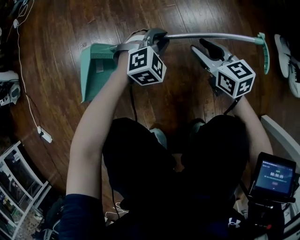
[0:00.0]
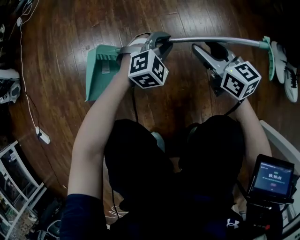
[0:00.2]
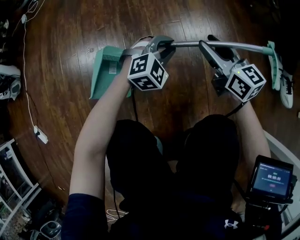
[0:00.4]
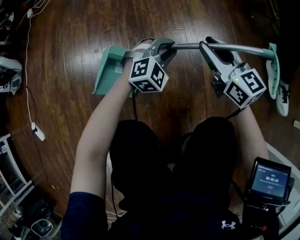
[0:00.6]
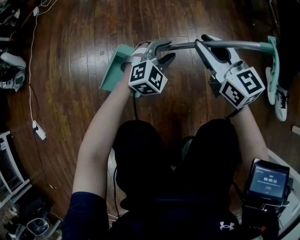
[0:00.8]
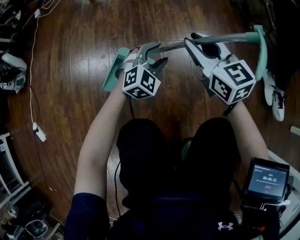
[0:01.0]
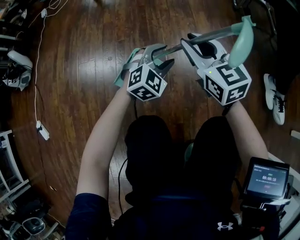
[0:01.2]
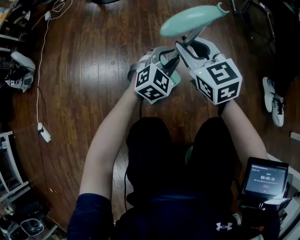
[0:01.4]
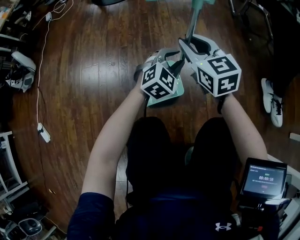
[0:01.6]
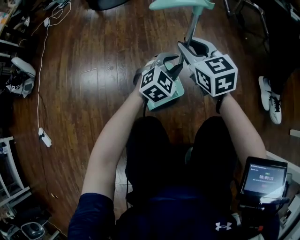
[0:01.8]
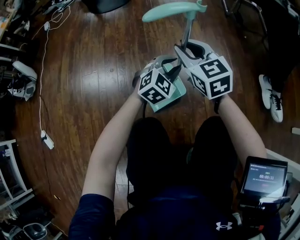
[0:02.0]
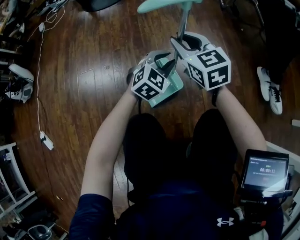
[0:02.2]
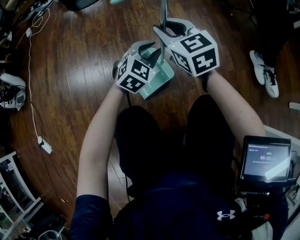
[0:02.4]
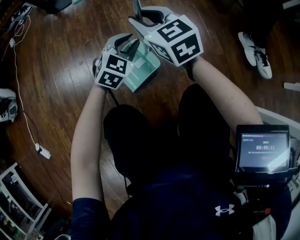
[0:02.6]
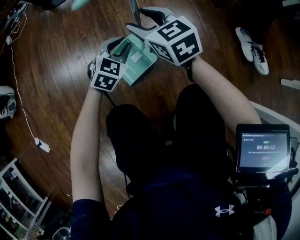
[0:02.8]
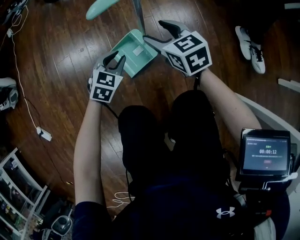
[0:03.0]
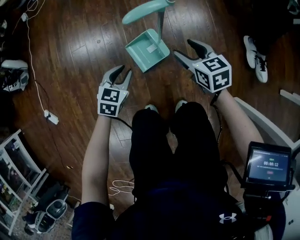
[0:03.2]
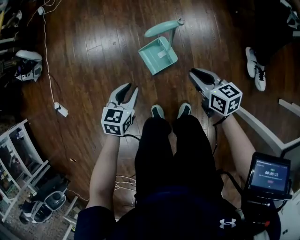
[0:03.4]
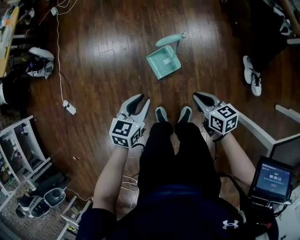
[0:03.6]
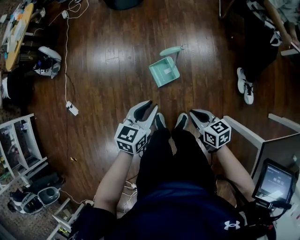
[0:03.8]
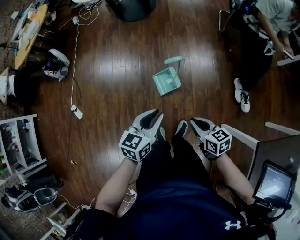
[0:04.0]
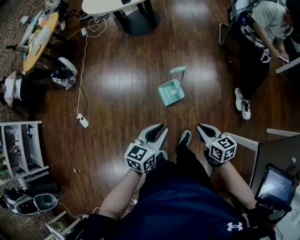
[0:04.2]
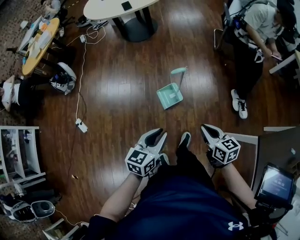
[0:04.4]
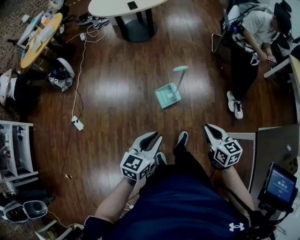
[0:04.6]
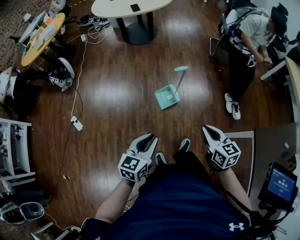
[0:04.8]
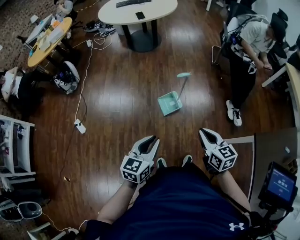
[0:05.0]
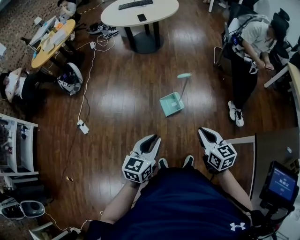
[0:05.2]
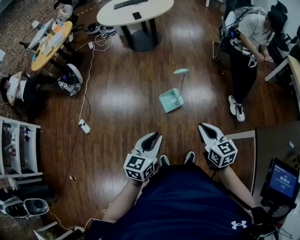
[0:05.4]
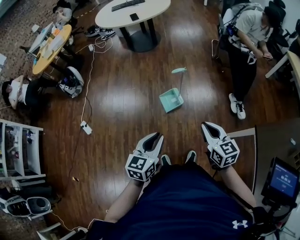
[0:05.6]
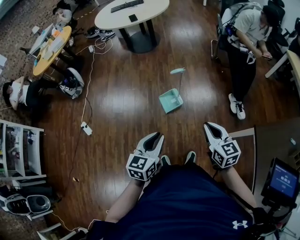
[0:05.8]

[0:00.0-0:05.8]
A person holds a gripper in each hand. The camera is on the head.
0.0 to 1.4 s: The right gripper travels upward, to the left and forward by some 20 cm, and rotates some 30 degrees. The left gripper heads upward, covering roughly 10 cm, rotates roughly 20 degrees, and opens, then closes again.
1.4 to 2.8 s: The right gripper opens up.
2.8 to 4.4 s: Both grippers move upward and backward, approximately 60 cm. The left gripper rotates around the line of its fingers by approximately 50 degrees, counterclockwise from behind; the right gripper rotates some 20 degrees, and closes up.
4.4 to 5.8 s: The right gripper goes about 10 cm upward and backward. Meanwhile the left gripper travels backward by roughly 10 cm.

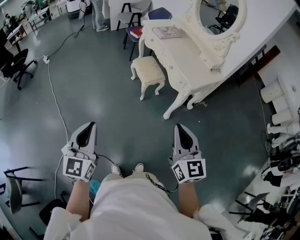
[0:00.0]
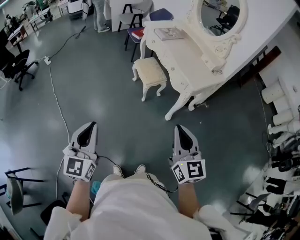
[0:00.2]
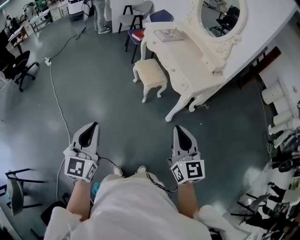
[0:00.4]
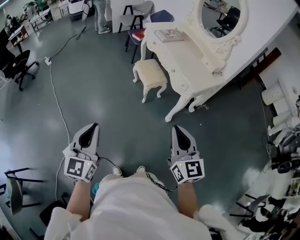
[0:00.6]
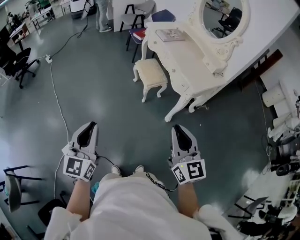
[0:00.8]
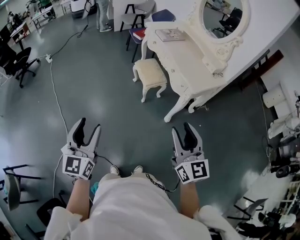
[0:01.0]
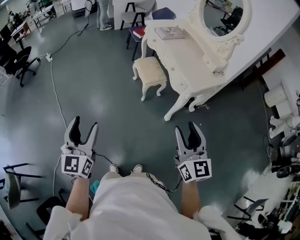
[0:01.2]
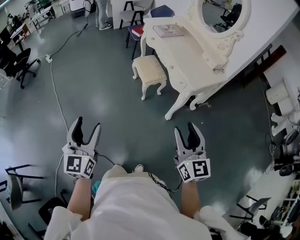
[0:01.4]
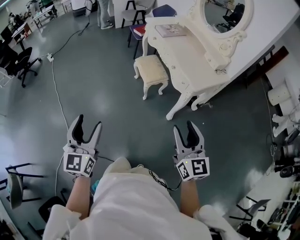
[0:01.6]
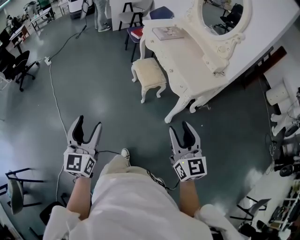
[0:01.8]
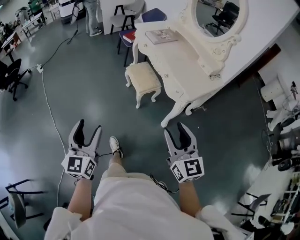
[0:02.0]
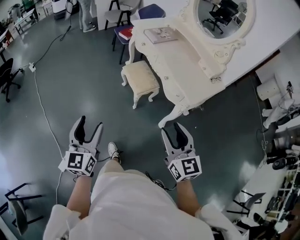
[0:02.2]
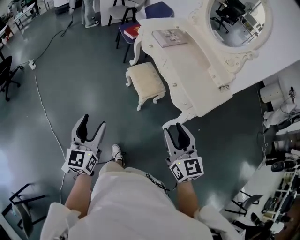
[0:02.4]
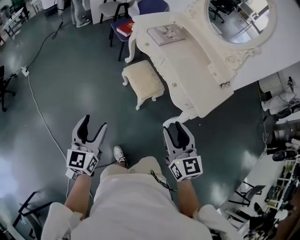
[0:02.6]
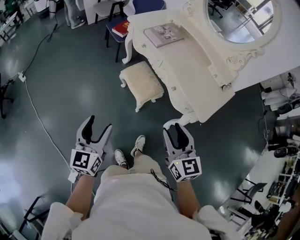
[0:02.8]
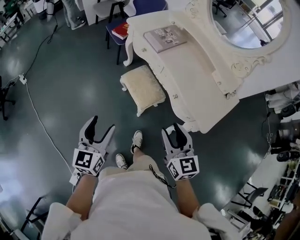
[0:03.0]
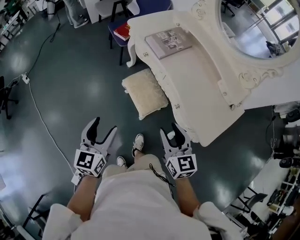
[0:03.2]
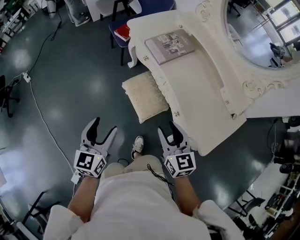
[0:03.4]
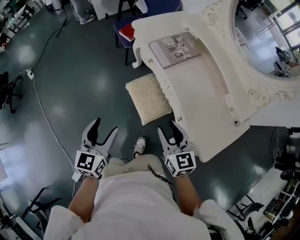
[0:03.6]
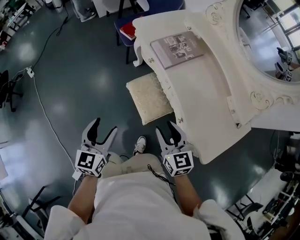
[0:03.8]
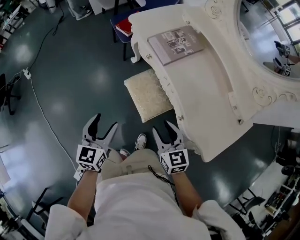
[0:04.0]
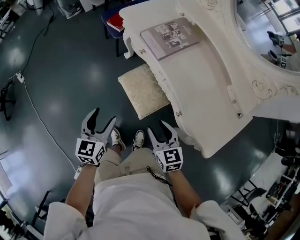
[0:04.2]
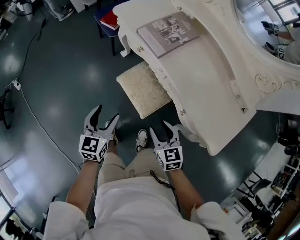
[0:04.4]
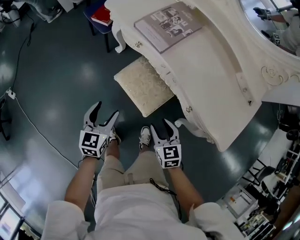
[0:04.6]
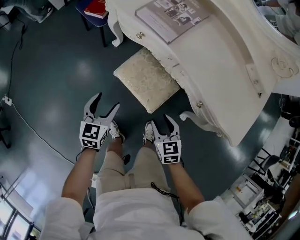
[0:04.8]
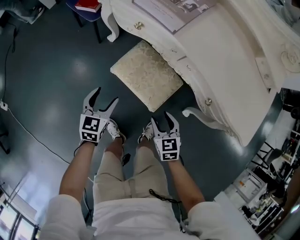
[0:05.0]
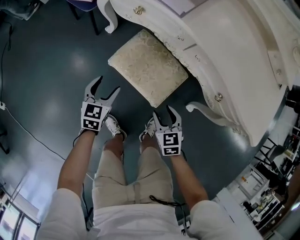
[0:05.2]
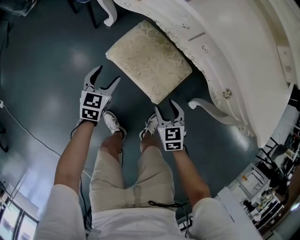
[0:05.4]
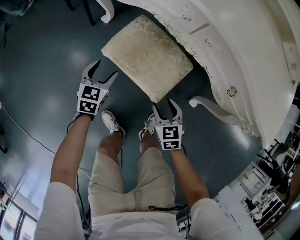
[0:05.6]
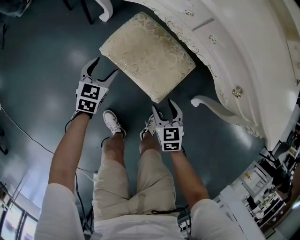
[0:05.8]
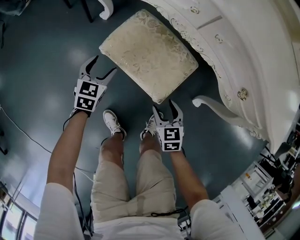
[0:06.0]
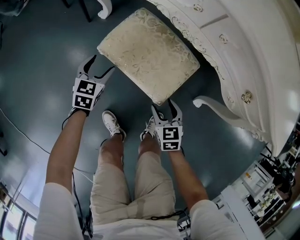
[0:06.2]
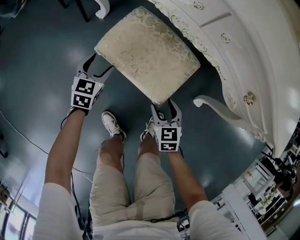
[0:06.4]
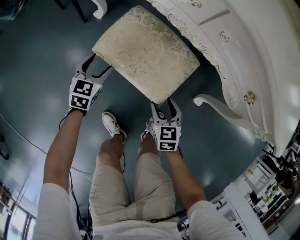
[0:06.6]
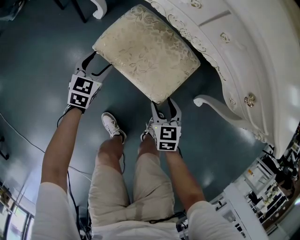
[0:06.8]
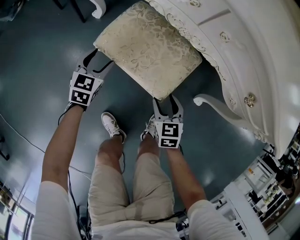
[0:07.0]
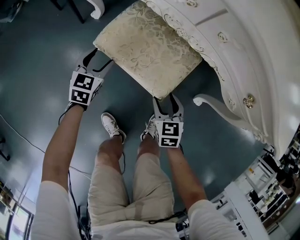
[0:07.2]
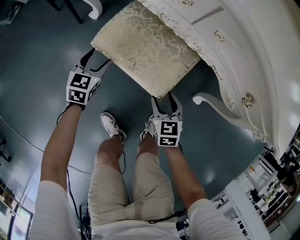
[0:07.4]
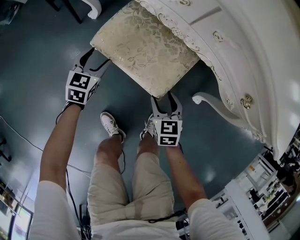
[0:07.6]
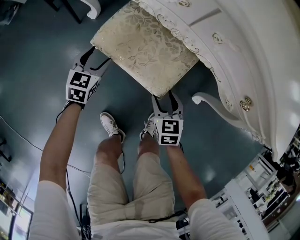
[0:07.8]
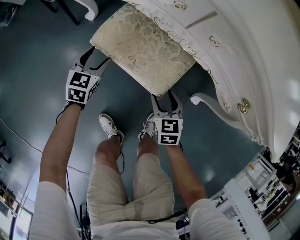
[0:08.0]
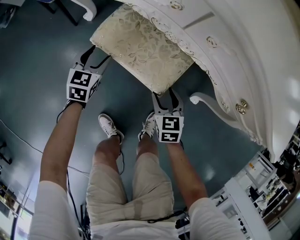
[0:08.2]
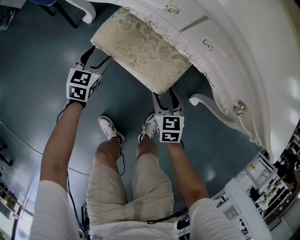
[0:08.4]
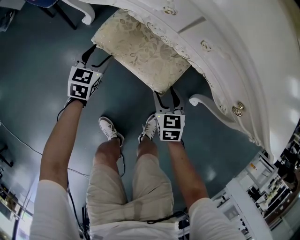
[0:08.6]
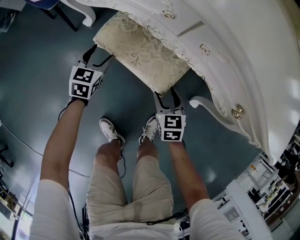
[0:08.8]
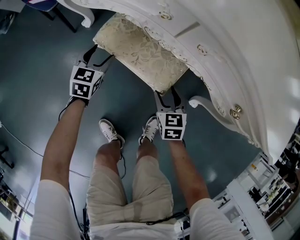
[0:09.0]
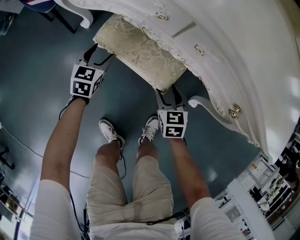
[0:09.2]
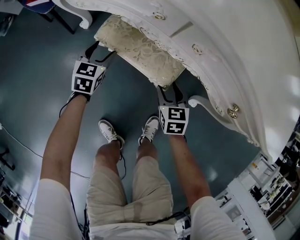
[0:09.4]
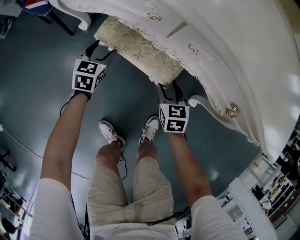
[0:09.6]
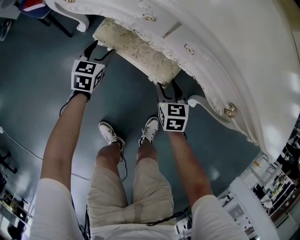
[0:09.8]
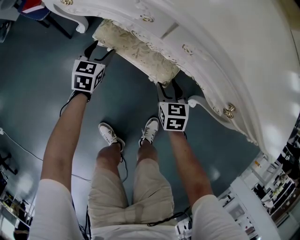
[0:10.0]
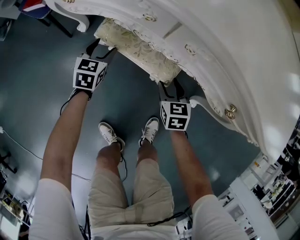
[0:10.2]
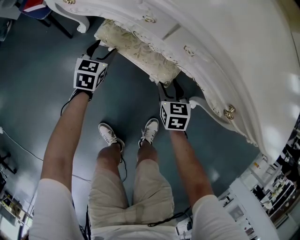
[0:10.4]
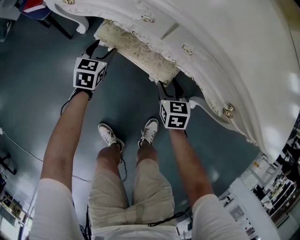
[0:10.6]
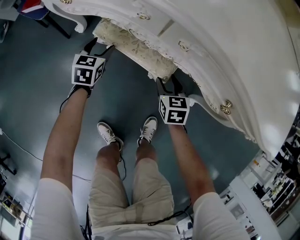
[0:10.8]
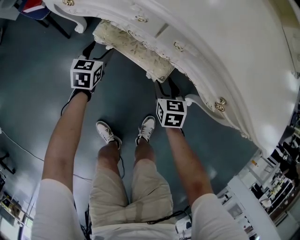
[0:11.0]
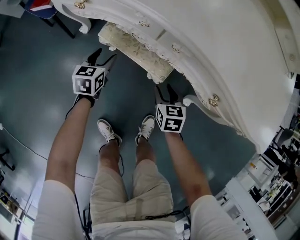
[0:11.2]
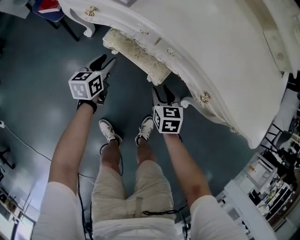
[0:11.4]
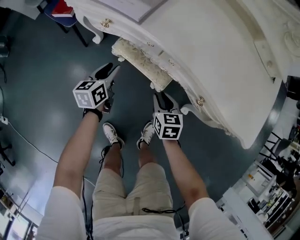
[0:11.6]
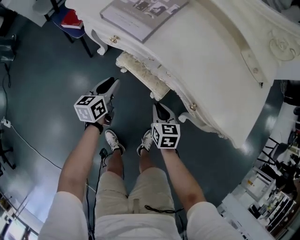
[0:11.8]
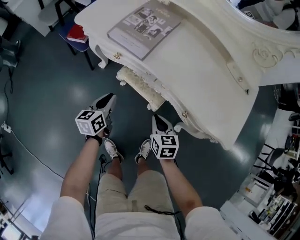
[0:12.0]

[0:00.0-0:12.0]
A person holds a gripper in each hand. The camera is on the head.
0.0 to 1.6 s: The left gripper ends up about 5 cm from where it was, and opens. Meanwhile the right gripper goes about 5 cm to the right, and opens up.
1.6 to 3.0 s: Both grippers are carried forward, approximately 40 cm. The left gripper swivels some 20 degrees.
3.0 to 4.4 s: The left gripper goes approximately 25 cm forward and downward. The right gripper travels downward and forward by some 25 cm.
4.4 to 6.0 s: Both grippers travel together downward, some 40 cm. The left gripper turns by approximately 30 degrees; the right gripper swivels roughly 20 degrees.
6.0 to 7.6 s: Both grippers travel together forward, about 5 cm.
7.6 to 9.0 s: Both grippers travel together forward, about 5 cm.
9.0 to 10.4 s: The right gripper changes place by about 5 cm. Meanwhile the left gripper moves approximately 5 cm.
10.4 to 12.0 s: The right gripper travels upward by about 25 cm, and closes its fingers. Meanwhile the left gripper shifts approximately 30 cm upward and backward, rotates roughly 40 degrees, and closes its fingers.

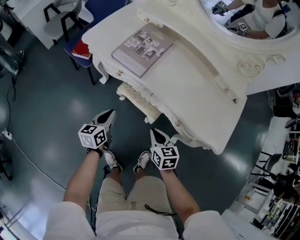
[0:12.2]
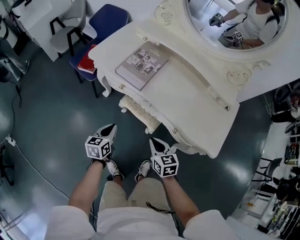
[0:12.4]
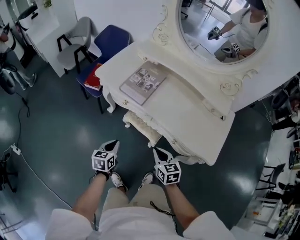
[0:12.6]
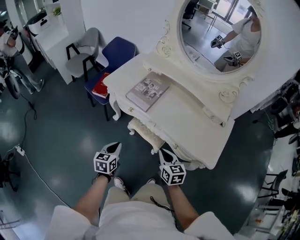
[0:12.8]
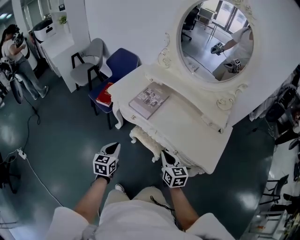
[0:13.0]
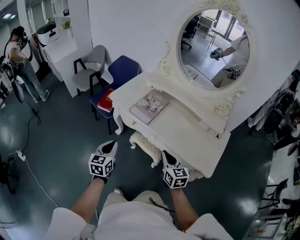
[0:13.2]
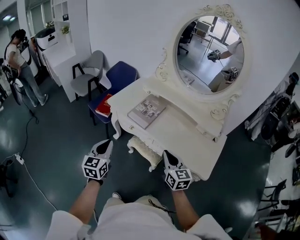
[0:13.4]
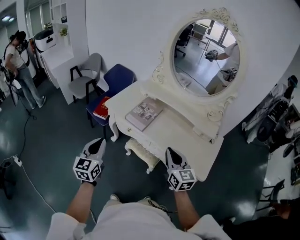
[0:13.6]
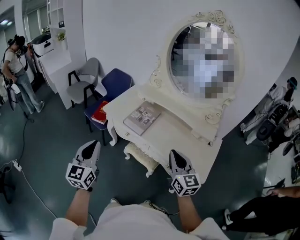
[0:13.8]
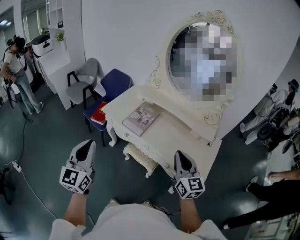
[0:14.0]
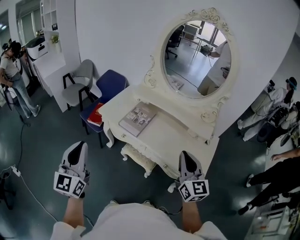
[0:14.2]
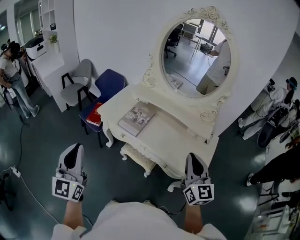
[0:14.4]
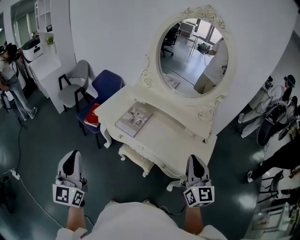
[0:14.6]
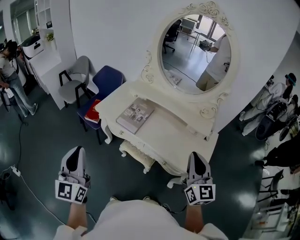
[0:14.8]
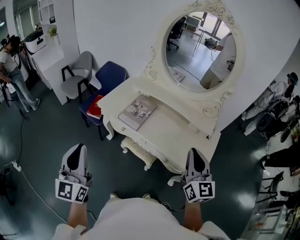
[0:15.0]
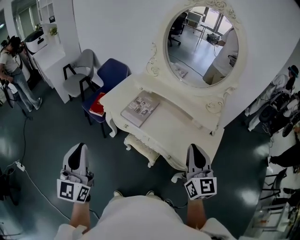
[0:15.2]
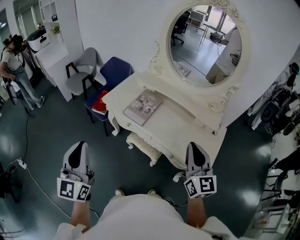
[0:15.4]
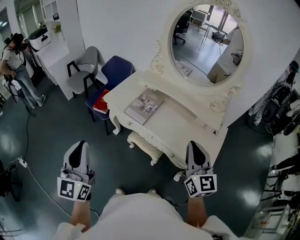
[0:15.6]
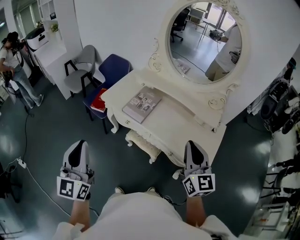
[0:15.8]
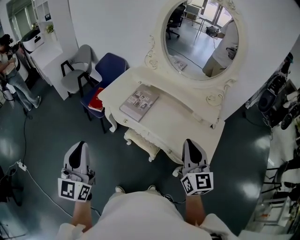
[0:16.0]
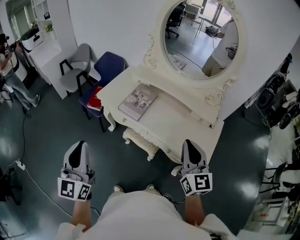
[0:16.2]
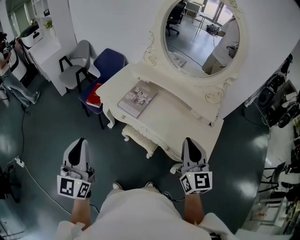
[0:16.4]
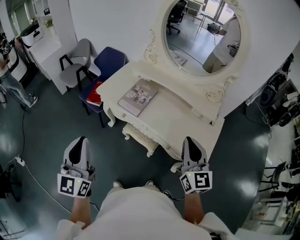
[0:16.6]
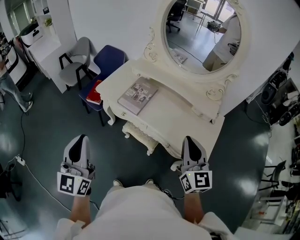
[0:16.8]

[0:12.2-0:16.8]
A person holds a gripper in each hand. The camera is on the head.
12.2 to 13.8 s: The grippers both shift upward by about 40 cm. The left gripper turns by some 40 degrees, while the right gripper angles its fingers upward, by approximately 30 degrees.
13.8 to 15.2 s: The right gripper heads upward and to the right, covering roughly 10 cm. The left gripper travels upward by some 5 cm.
15.2 to 16.8 s: The grippers make only small movements.

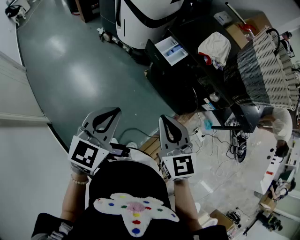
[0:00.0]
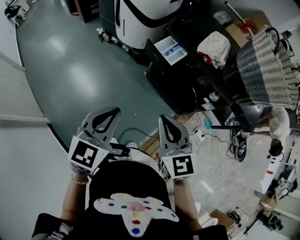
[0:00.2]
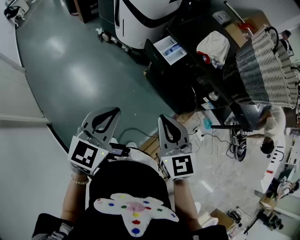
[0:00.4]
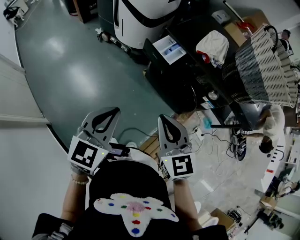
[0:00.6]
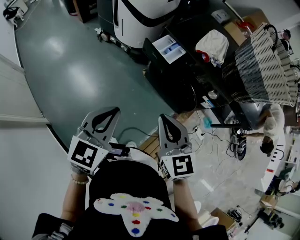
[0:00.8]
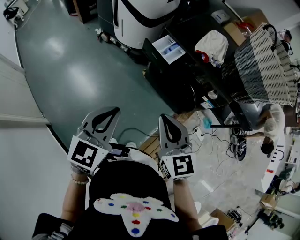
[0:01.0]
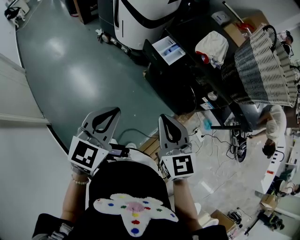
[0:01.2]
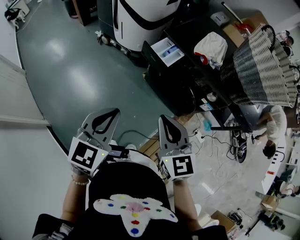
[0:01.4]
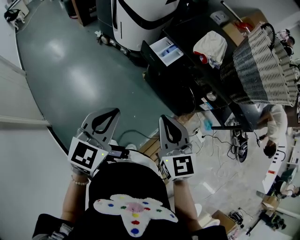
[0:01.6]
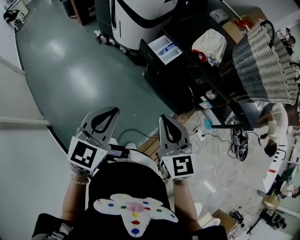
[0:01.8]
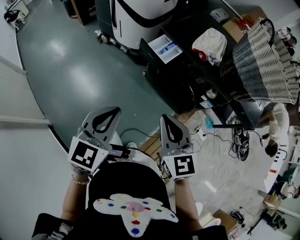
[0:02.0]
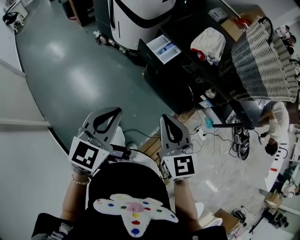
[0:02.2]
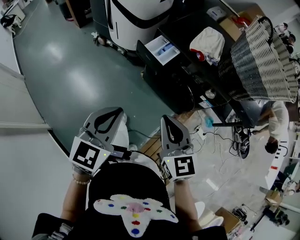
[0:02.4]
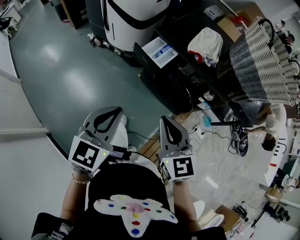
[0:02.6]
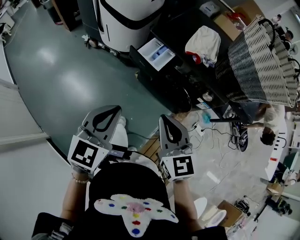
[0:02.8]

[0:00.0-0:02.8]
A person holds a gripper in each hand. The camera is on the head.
0.0 to 1.4 s: The grippers stay close to where they were, moving slightly.
1.4 to 2.8 s: The two grippers go about 5 cm forward.
